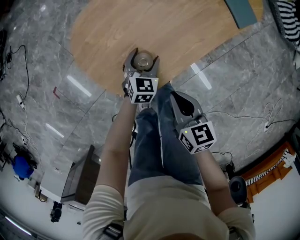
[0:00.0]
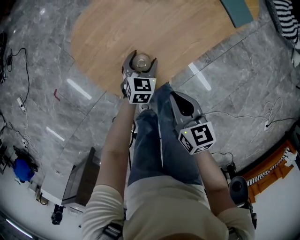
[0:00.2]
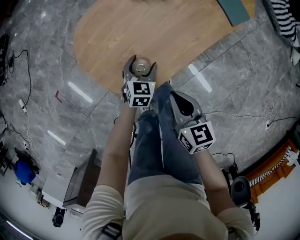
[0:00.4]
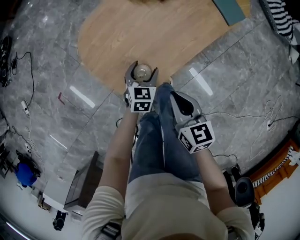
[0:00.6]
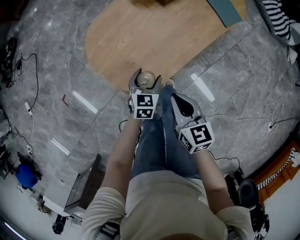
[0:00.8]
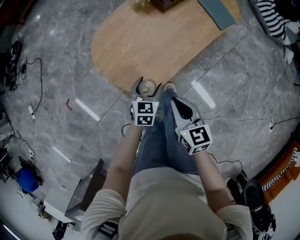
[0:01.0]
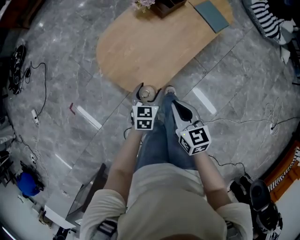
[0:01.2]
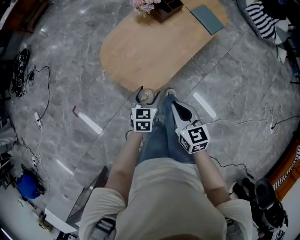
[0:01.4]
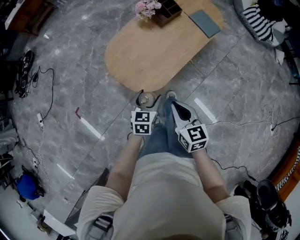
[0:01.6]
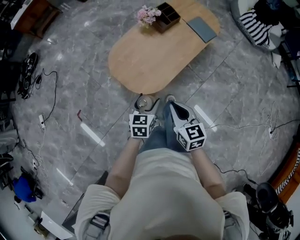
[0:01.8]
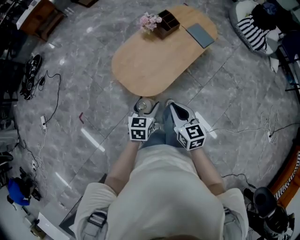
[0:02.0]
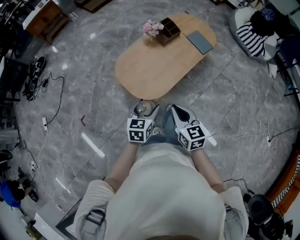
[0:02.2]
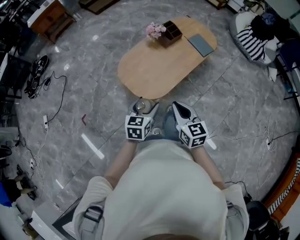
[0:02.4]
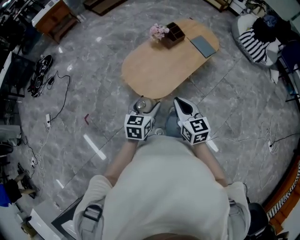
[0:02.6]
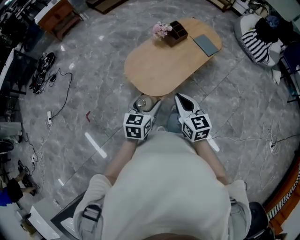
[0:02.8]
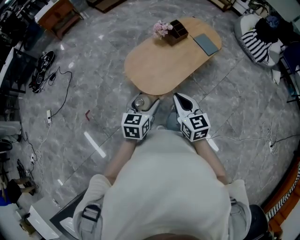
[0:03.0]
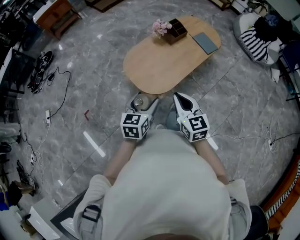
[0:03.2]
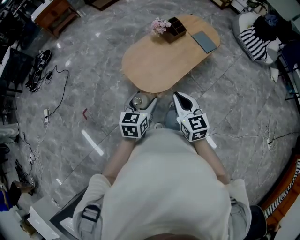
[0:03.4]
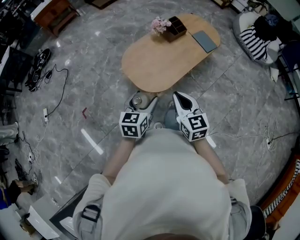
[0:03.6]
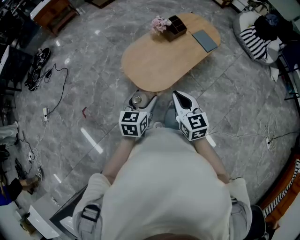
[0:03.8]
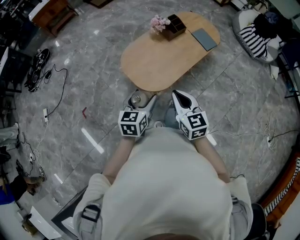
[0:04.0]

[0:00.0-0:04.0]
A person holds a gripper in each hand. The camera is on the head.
0:00.0 to 0:01.4: Both grippers move upward and backward, roughly 20 cm.
0:01.4 to 0:02.6: The left gripper goes approximately 25 cm upward and backward. Meanwhile the right gripper shifts roughly 15 cm upward.
0:02.6 to 0:04.0: There are only small adjustments of the grippers.

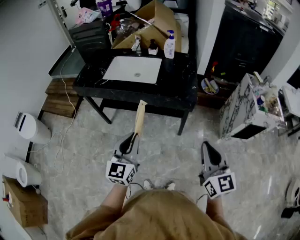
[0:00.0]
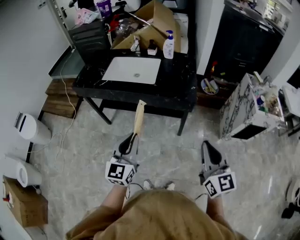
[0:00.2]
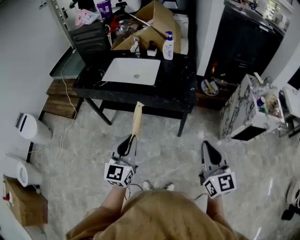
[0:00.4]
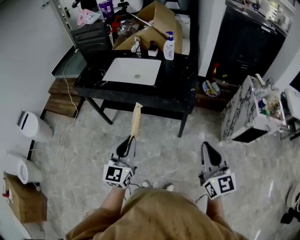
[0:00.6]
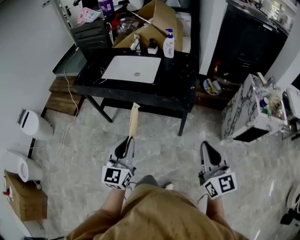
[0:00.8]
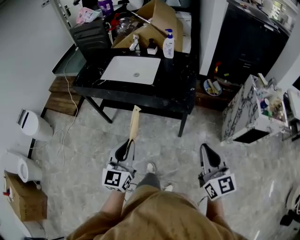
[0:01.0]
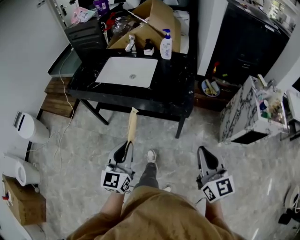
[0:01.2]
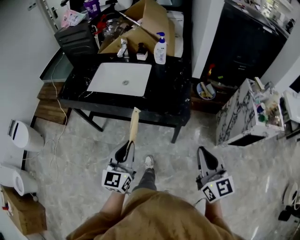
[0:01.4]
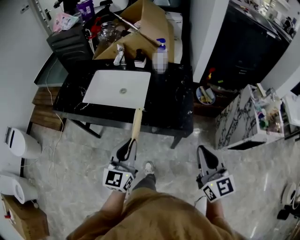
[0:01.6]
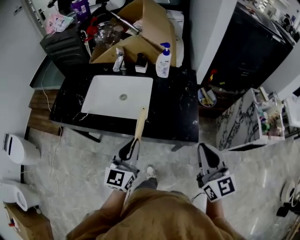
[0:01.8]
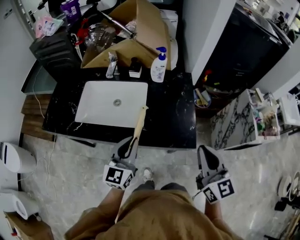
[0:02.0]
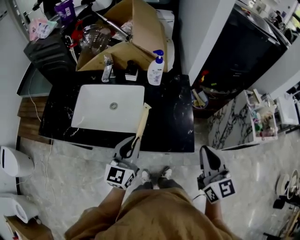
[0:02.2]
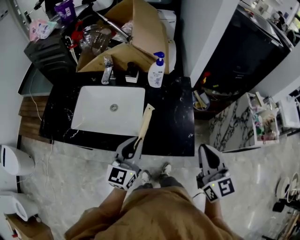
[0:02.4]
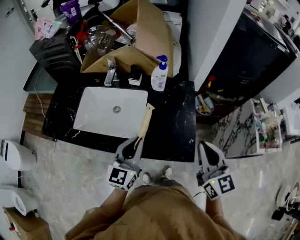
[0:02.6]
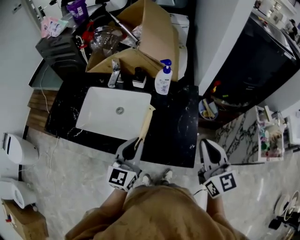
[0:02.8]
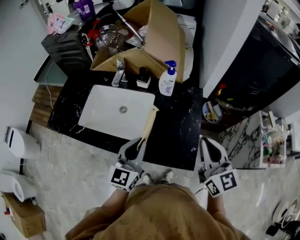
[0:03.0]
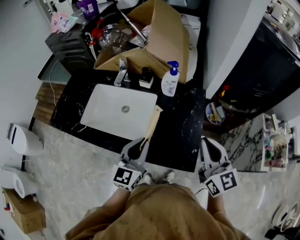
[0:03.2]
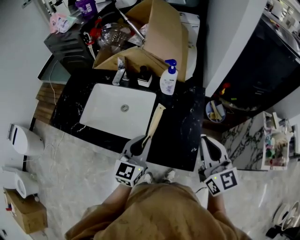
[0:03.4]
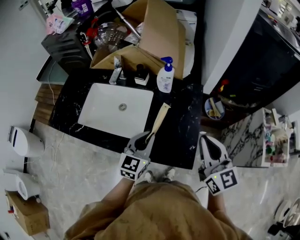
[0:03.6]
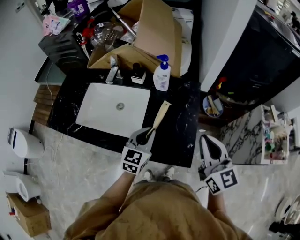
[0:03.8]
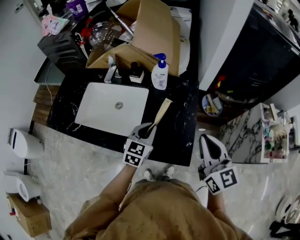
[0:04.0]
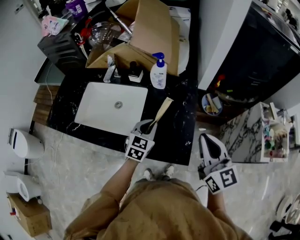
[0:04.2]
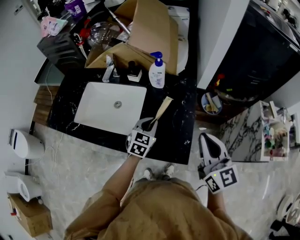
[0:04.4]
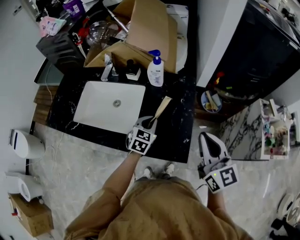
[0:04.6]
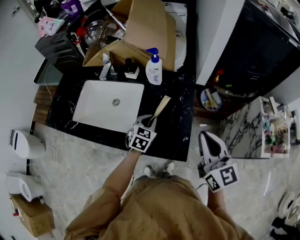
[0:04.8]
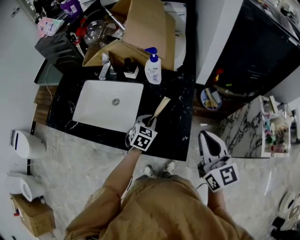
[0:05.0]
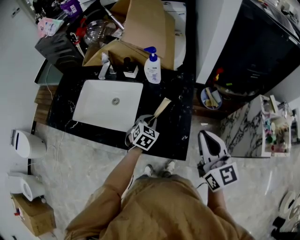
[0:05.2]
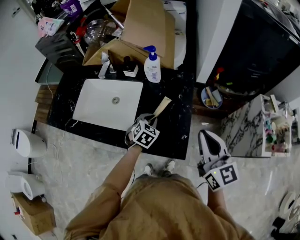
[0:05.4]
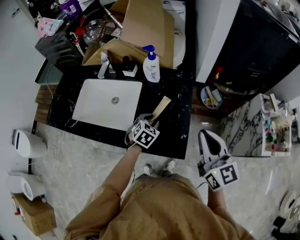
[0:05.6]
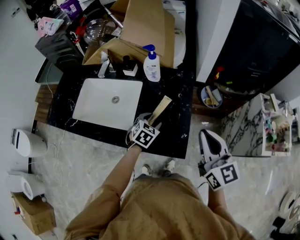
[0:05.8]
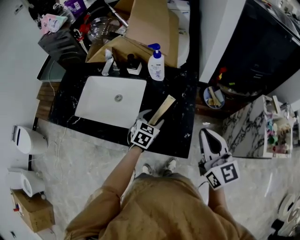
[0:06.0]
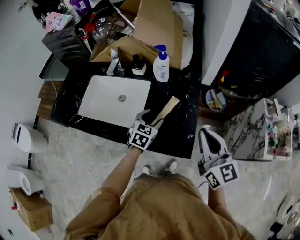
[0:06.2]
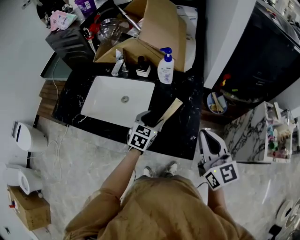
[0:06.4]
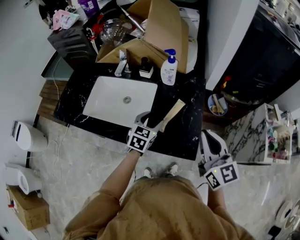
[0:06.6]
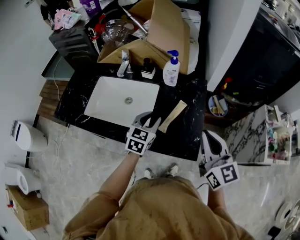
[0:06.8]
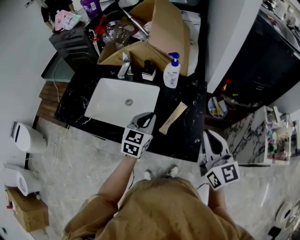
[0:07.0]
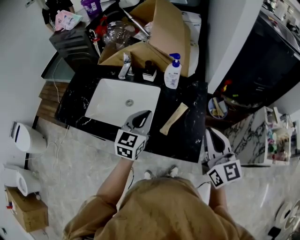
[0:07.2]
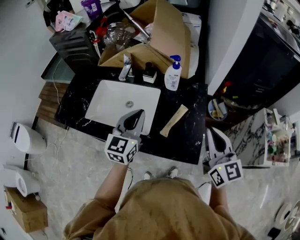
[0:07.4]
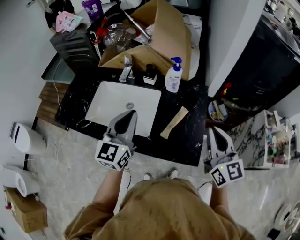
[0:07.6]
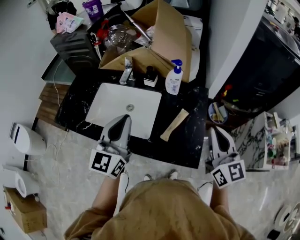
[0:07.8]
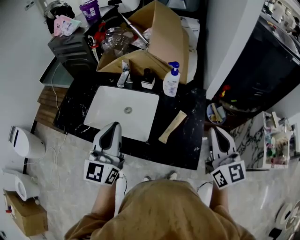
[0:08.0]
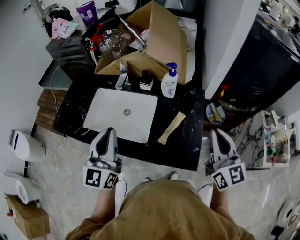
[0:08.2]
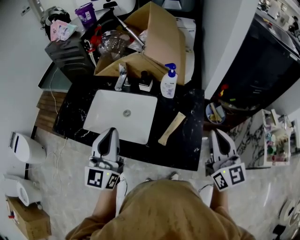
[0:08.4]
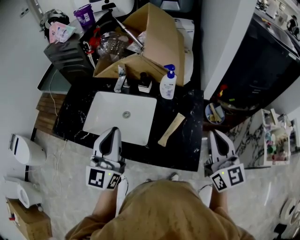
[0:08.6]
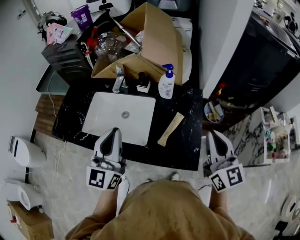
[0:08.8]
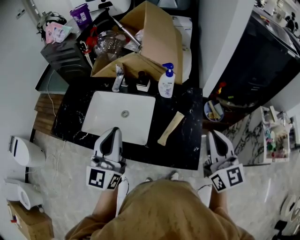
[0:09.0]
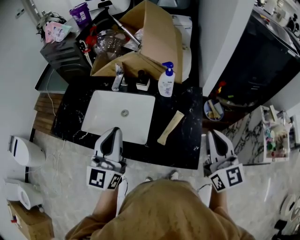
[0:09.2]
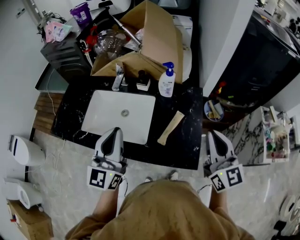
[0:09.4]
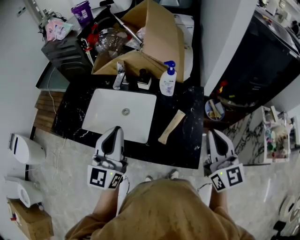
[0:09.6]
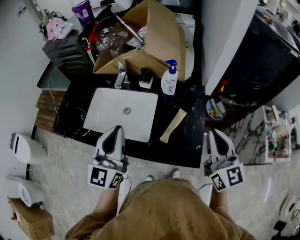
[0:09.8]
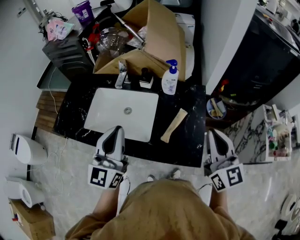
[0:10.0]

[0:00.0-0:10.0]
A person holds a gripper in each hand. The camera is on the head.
0:00.0 to 0:01.4: Both grippers travel together forward, approximately 10 cm.
0:01.4 to 0:02.8: The grippers both shift forward by roughly 35 cm.
0:02.8 to 0:04.2: The right gripper shifts by approximately 5 cm. The left gripper shifts roughly 15 cm downward, to the right and forward, and rotates approximately 20 degrees.
0:04.2 to 0:05.8: The left gripper heads downward, covering some 10 cm, turns by some 20 degrees, and opens.
0:05.8 to 0:07.2: The left gripper heads upward and to the left, covering about 25 cm, tilts its fingers some 30 degrees upward, and closes. The right gripper is displaced to the left by about 10 cm.
0:07.2 to 0:08.6: The left gripper is displaced upward and to the left by roughly 15 cm, and swivels some 30 degrees.
0:08.6 to 0:10.0: The grippers make only small movements.

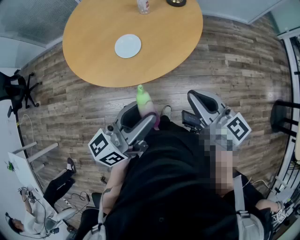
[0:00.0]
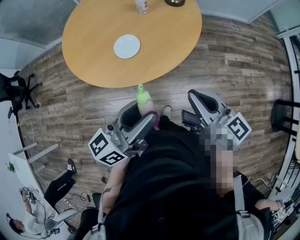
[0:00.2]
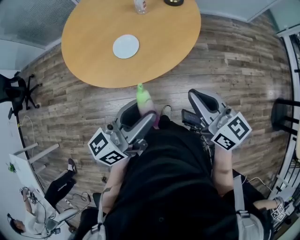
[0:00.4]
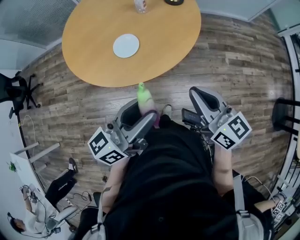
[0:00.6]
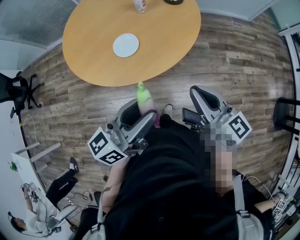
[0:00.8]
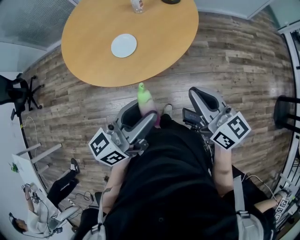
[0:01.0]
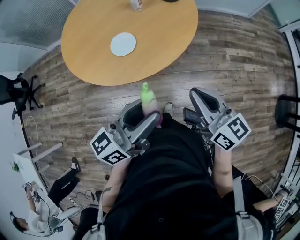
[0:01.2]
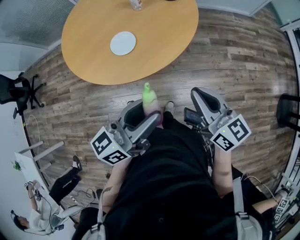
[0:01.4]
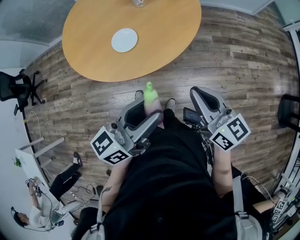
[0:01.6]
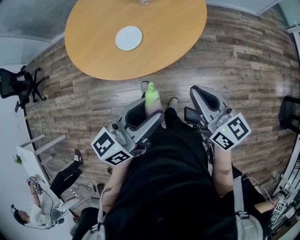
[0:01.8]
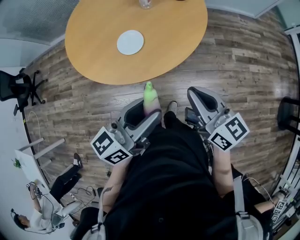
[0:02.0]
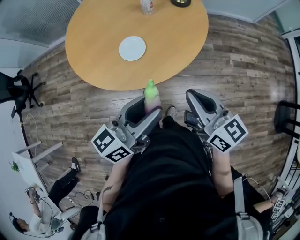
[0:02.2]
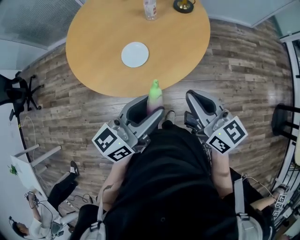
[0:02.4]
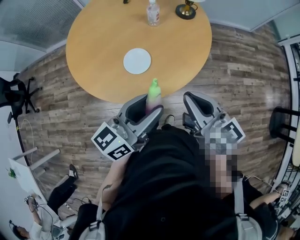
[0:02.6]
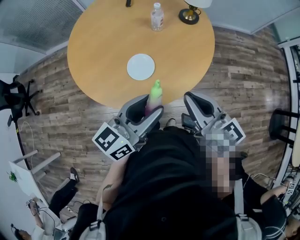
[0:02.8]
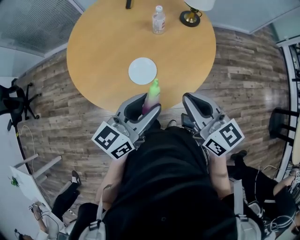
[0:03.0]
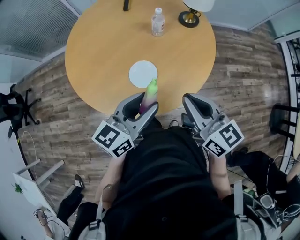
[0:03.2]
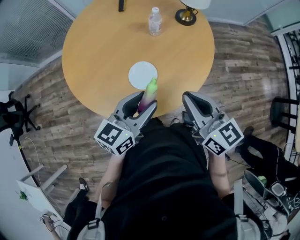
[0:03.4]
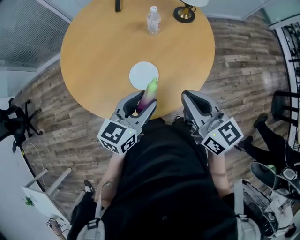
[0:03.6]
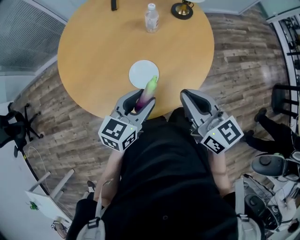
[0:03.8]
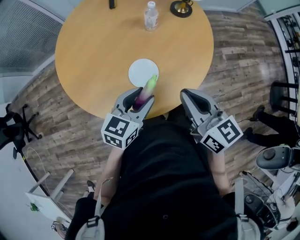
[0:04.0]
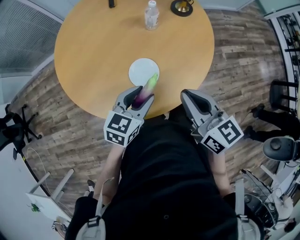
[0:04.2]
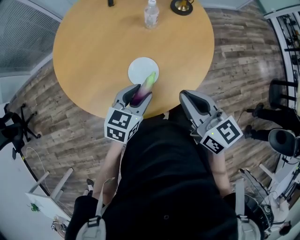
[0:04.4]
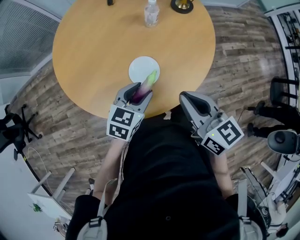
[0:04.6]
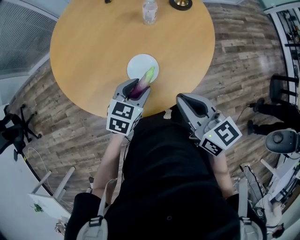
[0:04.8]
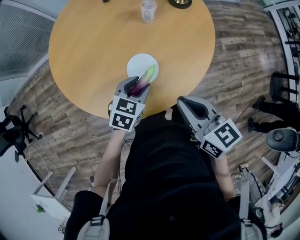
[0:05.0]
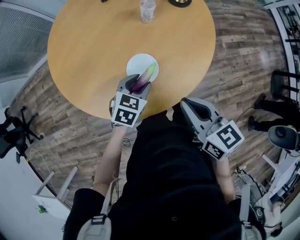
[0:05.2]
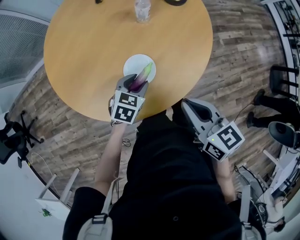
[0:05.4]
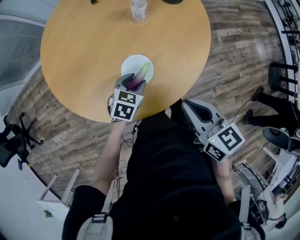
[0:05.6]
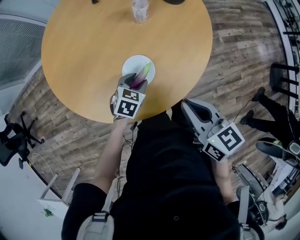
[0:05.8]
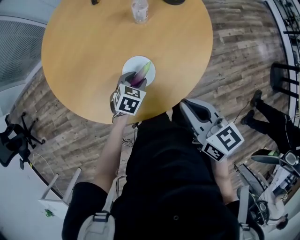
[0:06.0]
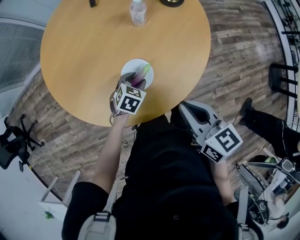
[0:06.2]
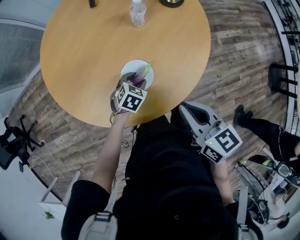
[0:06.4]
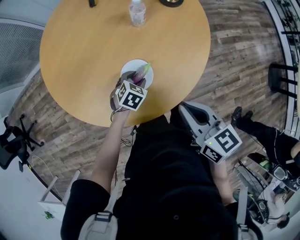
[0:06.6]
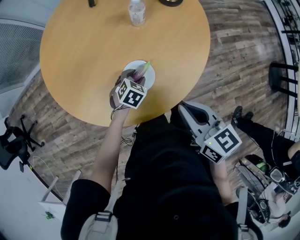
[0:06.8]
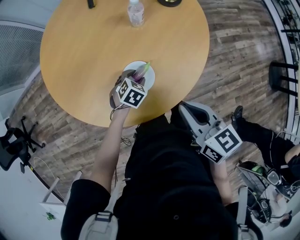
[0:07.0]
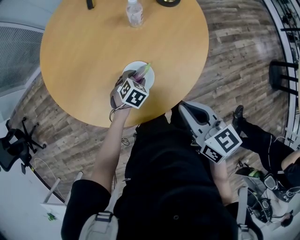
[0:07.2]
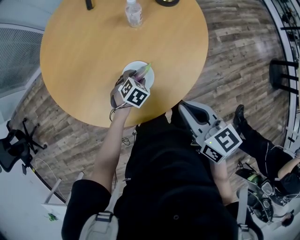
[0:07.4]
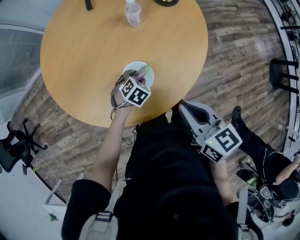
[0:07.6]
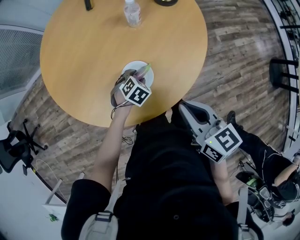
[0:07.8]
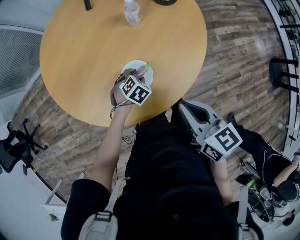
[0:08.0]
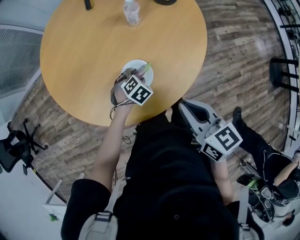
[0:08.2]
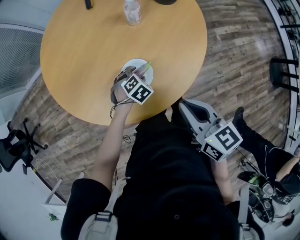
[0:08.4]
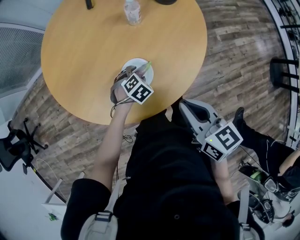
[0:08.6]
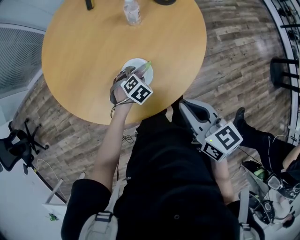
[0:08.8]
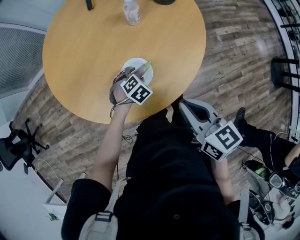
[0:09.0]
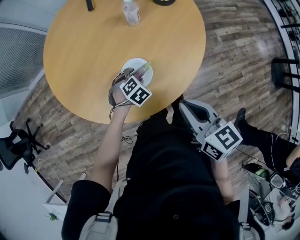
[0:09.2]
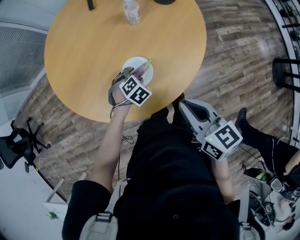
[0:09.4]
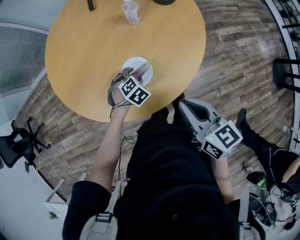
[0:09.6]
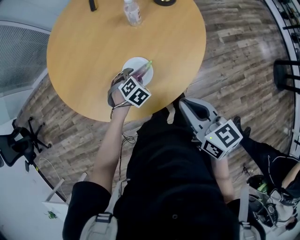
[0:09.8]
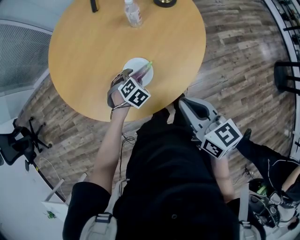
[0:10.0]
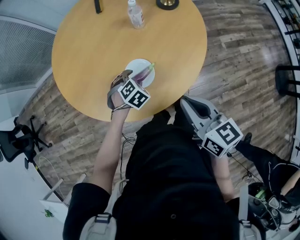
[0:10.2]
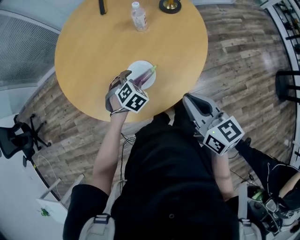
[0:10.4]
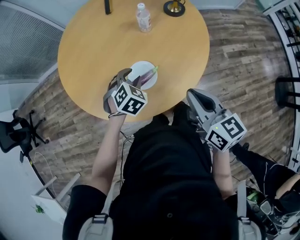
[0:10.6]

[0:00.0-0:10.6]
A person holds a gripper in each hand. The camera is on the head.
0:00.0 to 0:01.6: The left gripper shifts by about 5 cm.
0:01.6 to 0:03.0: The right gripper is displaced to the left and forward by about 20 cm, while the left gripper moves forward and to the left, about 25 cm.
0:03.0 to 0:04.6: The right gripper travels to the left by about 5 cm, while the left gripper goes some 20 cm downward, forward and to the left, and tips its fingers downward by some 30 degrees.
0:04.6 to 0:06.0: The left gripper goes about 15 cm downward and forward.
0:06.0 to 0:07.6: The grippers move only a little.
0:07.6 to 0:09.0: The grippers stay close to where they were, moving slightly.
0:09.0 to 0:10.6: The left gripper heads upward, covering about 15 cm.
